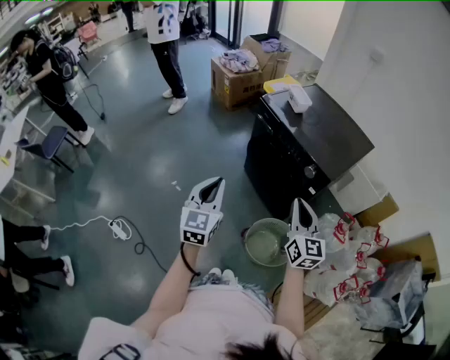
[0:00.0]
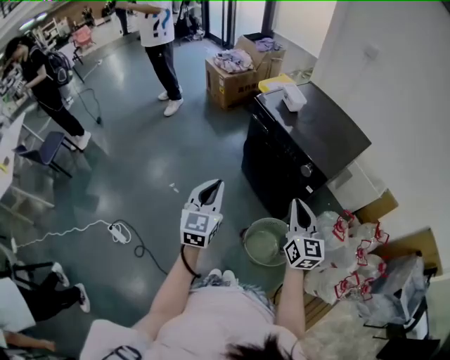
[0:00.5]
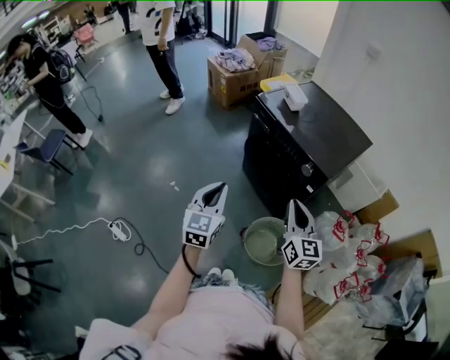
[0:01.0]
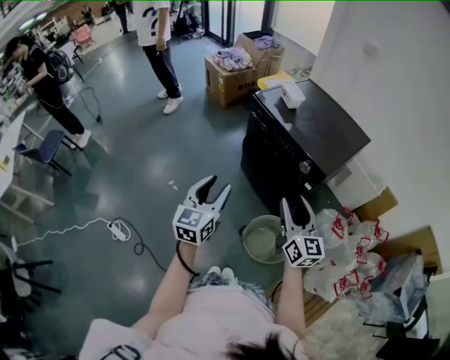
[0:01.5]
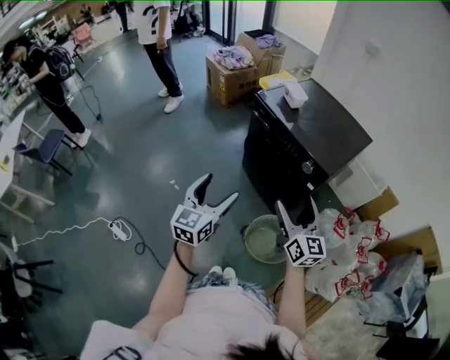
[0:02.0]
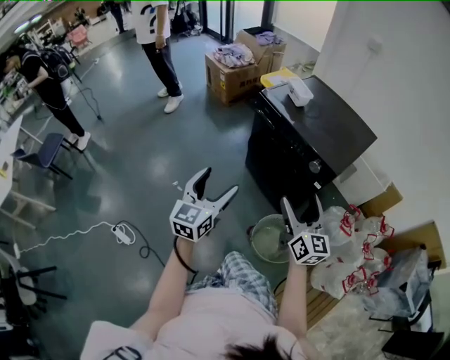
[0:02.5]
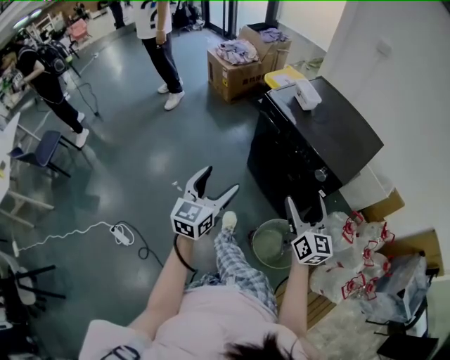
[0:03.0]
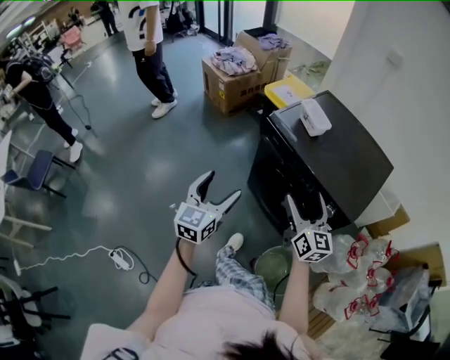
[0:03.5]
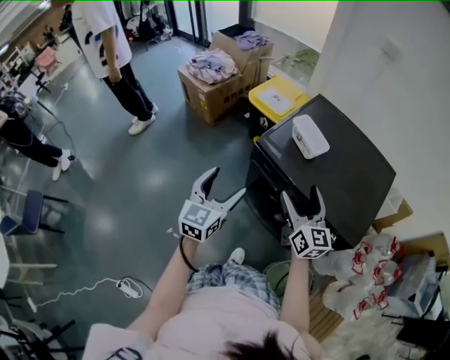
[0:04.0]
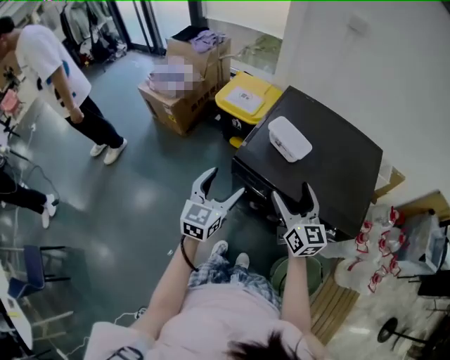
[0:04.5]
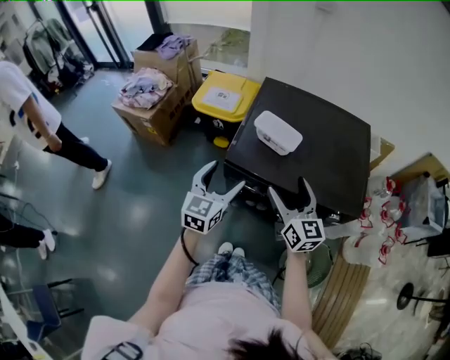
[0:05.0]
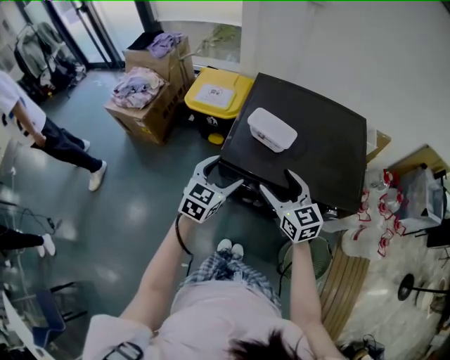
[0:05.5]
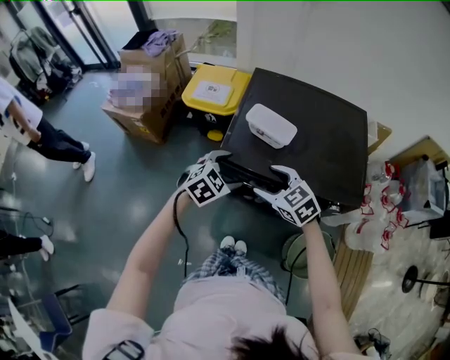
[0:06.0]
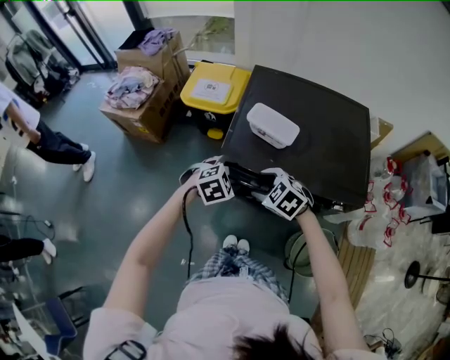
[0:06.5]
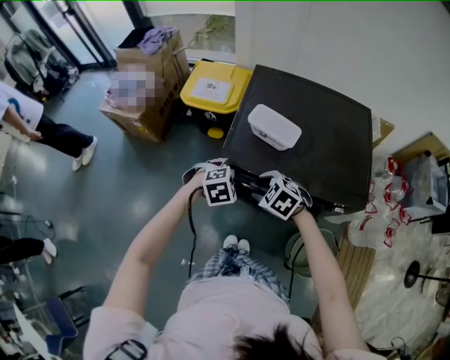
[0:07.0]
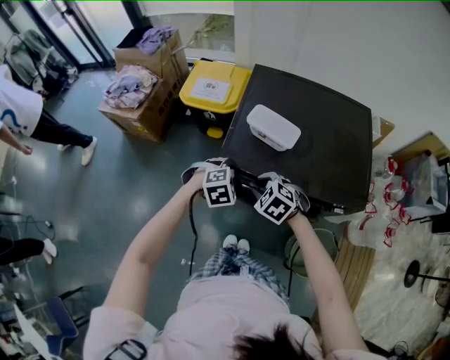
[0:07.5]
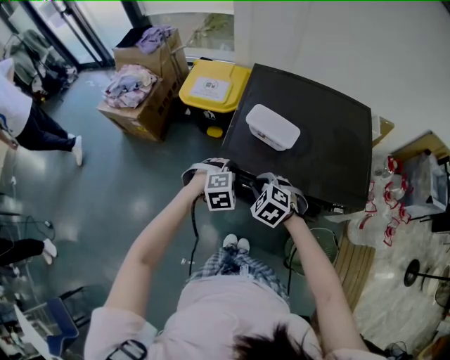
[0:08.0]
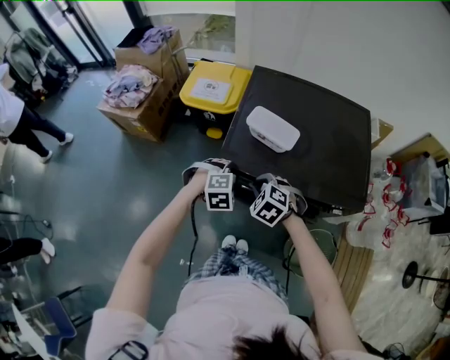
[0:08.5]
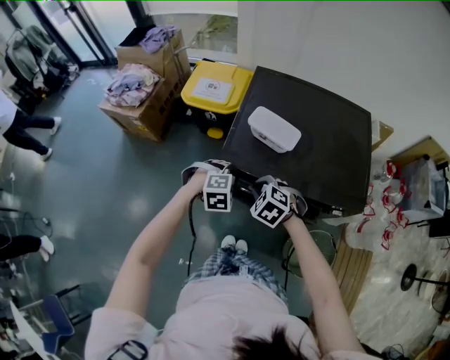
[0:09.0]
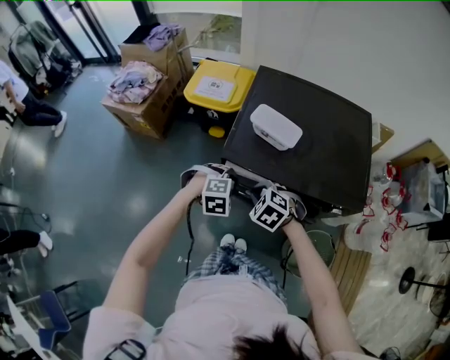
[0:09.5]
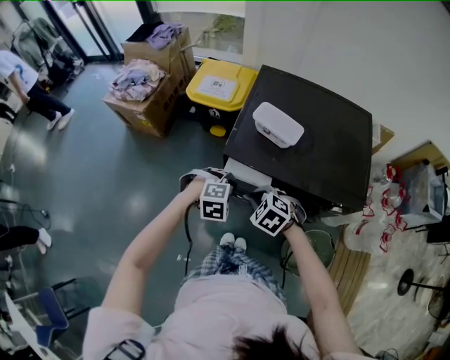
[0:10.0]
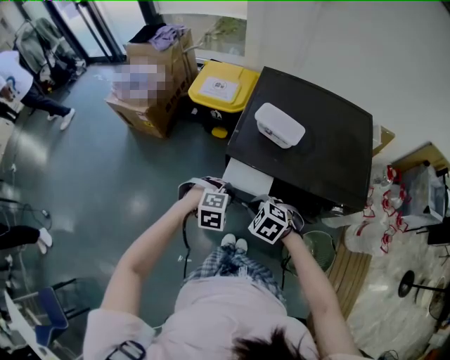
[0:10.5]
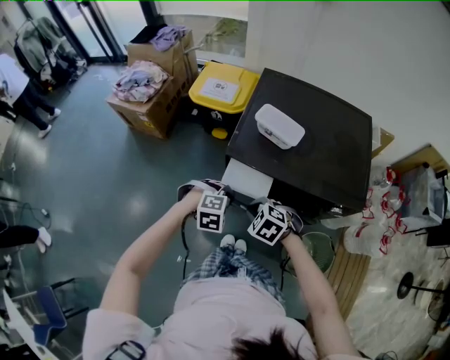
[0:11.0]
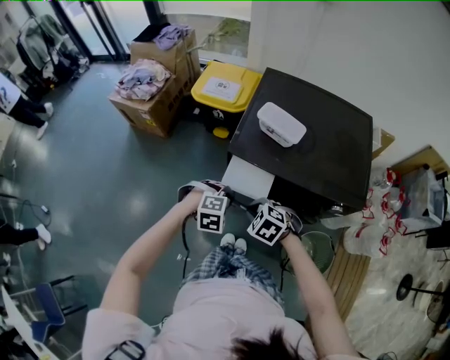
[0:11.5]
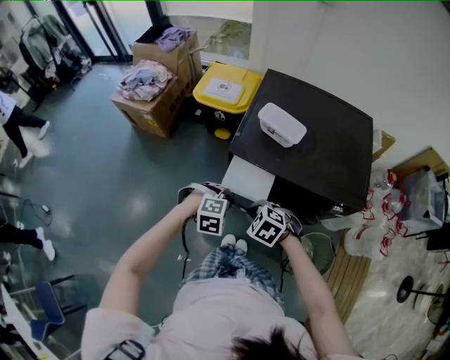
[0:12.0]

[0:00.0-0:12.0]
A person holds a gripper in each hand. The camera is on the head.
0:00.0 to 0:02.0: The left gripper opens. The right gripper opens.
0:02.0 to 0:04.0: Both grippers move forward, roughly 40 cm.
0:04.0 to 0:06.0: The right gripper shifts roughly 10 cm to the left, forward and downward, and tilts its fingers roughly 40 degrees downward. The left gripper goes approximately 20 cm forward and downward, and tilts its fingers some 40 degrees downward.
0:06.0 to 0:08.0: Both grippers travel together downward, roughly 10 cm. The left gripper swivels approximately 30 degrees, and closes up. The right gripper changes its angle by some 30 degrees, and closes up.
0:08.0 to 0:10.0: Both grippers move backward, roughly 5 cm.
0:10.0 to 0:12.0: Both grippers travel together backward, approximately 5 cm.

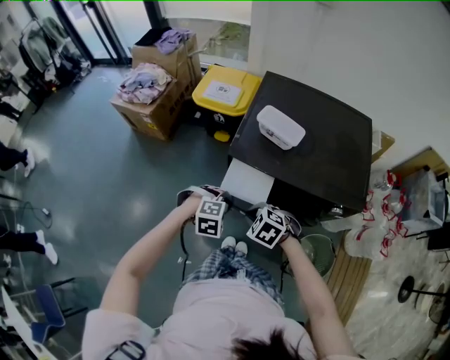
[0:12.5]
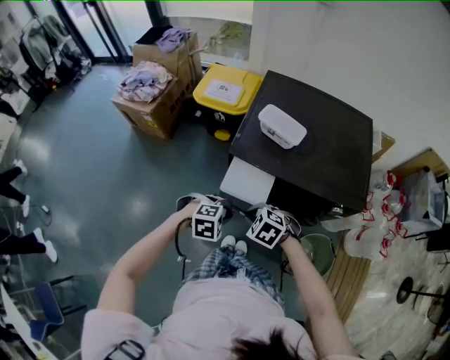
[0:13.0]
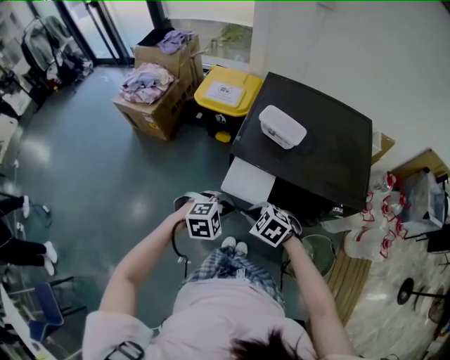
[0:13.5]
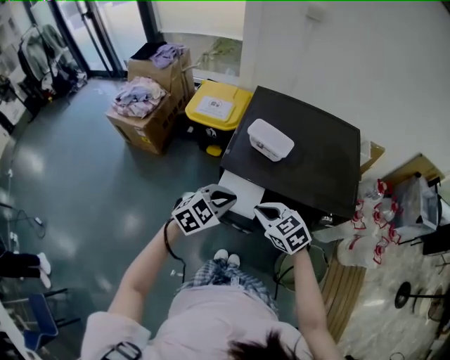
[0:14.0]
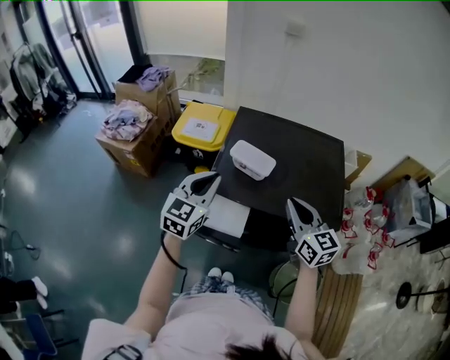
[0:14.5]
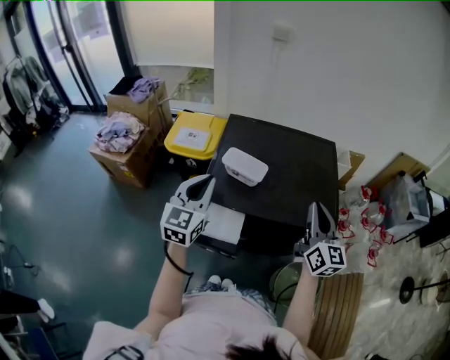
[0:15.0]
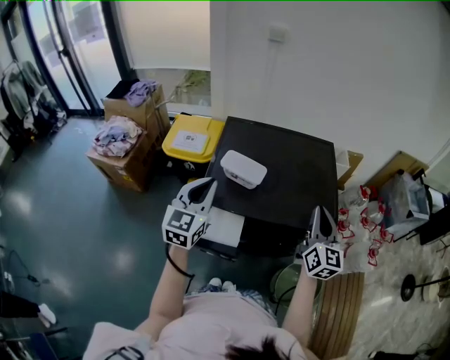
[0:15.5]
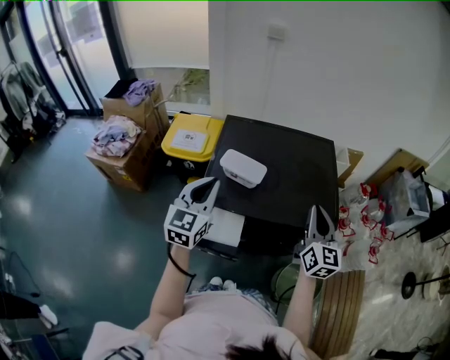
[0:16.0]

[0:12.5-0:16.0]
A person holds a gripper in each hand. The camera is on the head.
0:12.5 to 0:14.5: Both grippers travel together upward, some 25 cm. The right gripper tilts its fingers about 60 degrees upward. The left gripper points its fingers some 60 degrees further upward.
0:14.5 to 0:16.0: The right gripper heads to the right, covering some 10 cm, and rotates some 30 degrees.

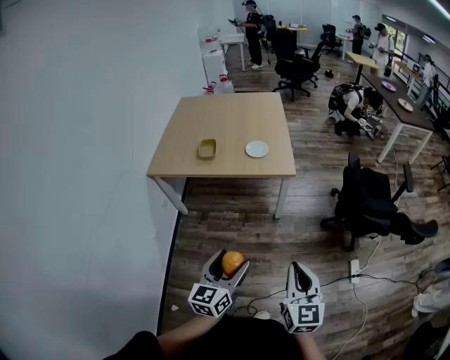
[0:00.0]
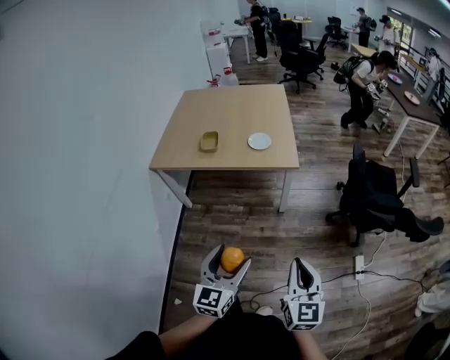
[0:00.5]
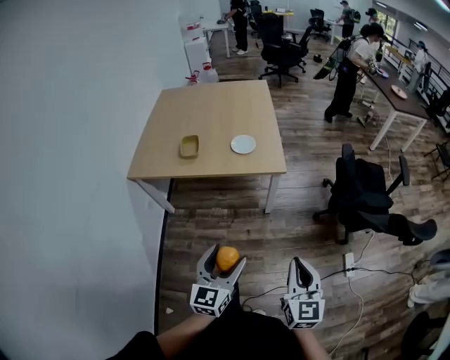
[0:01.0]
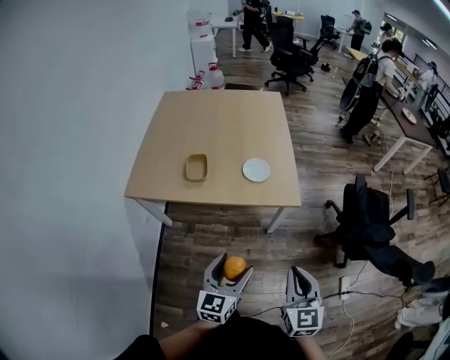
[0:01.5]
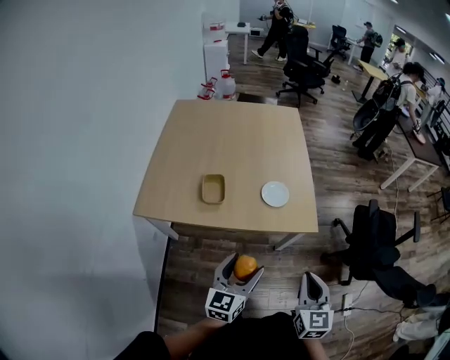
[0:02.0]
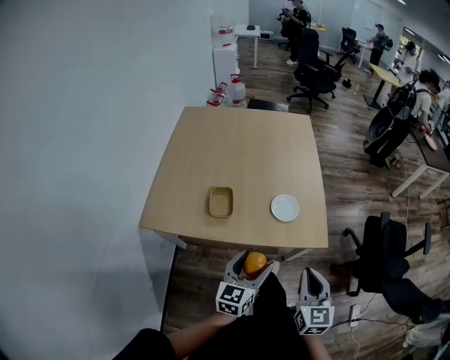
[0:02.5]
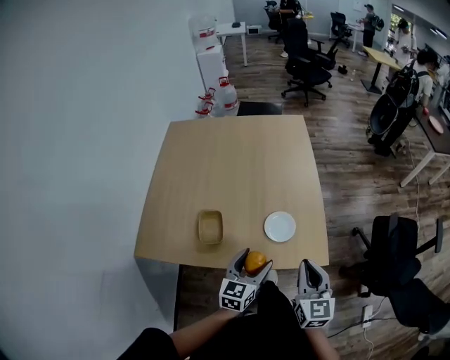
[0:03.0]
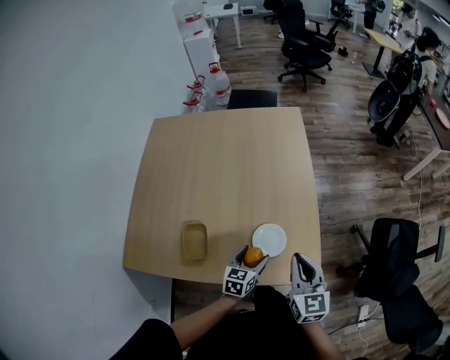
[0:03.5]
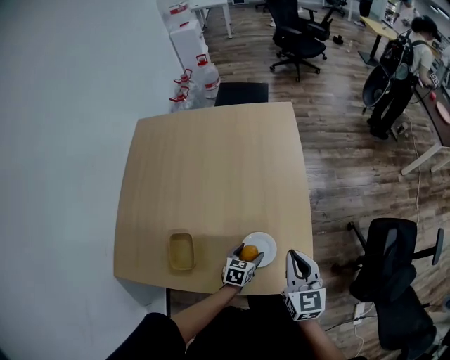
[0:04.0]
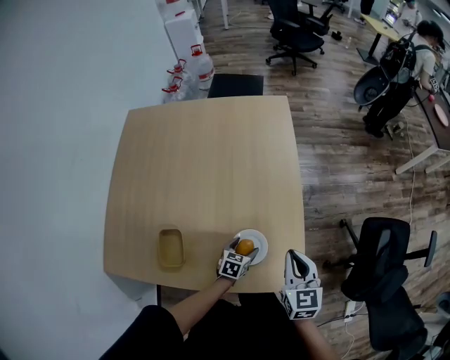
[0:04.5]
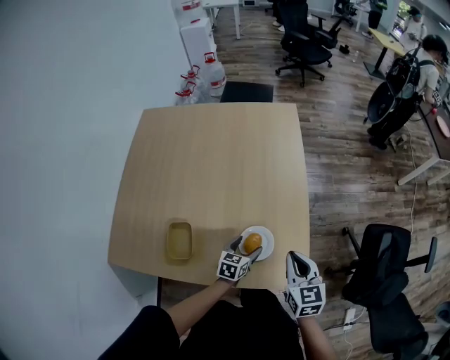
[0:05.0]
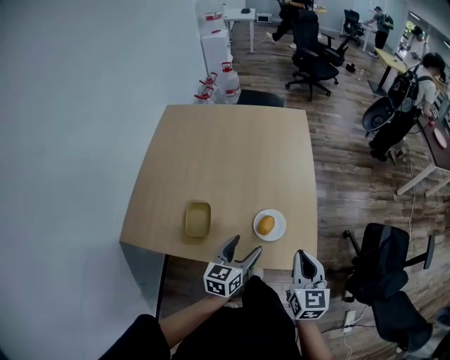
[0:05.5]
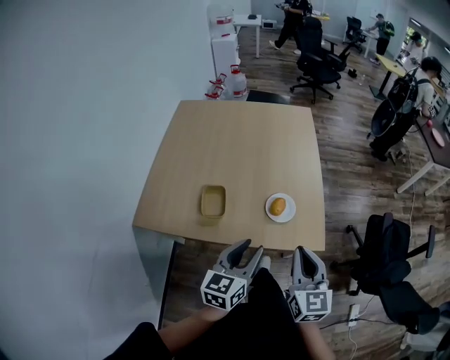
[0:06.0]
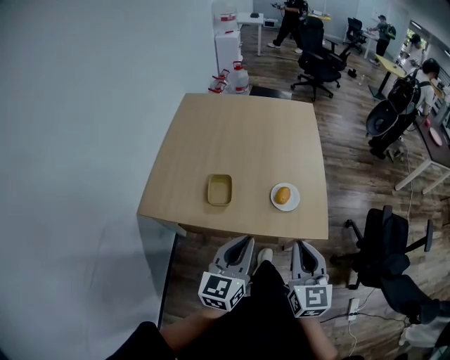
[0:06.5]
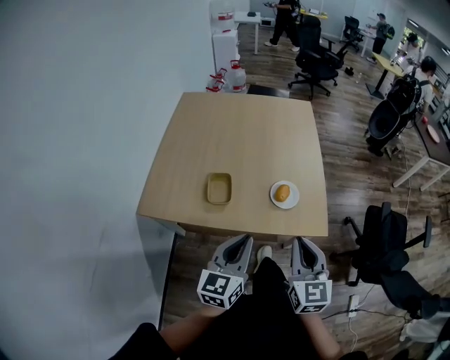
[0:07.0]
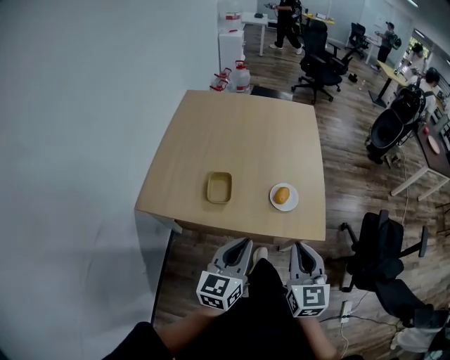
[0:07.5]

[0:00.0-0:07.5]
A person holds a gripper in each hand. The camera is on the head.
0:00.0 to 0:02.0: The two grippers go approximately 35 cm forward.
0:02.0 to 0:04.0: The right gripper is displaced forward by roughly 40 cm. The left gripper is displaced forward and downward by approximately 50 cm, and tilts its fingers some 40 degrees downward.
0:04.0 to 0:05.5: The right gripper travels backward by some 15 cm. The left gripper heads upward and backward, covering roughly 25 cm, and changes its angle by approximately 30 degrees.
0:05.5 to 0:07.5: The right gripper heads backward, to the left and upward, covering roughly 20 cm. Meanwhile the left gripper heads backward and upward, covering approximately 20 cm, and closes up.

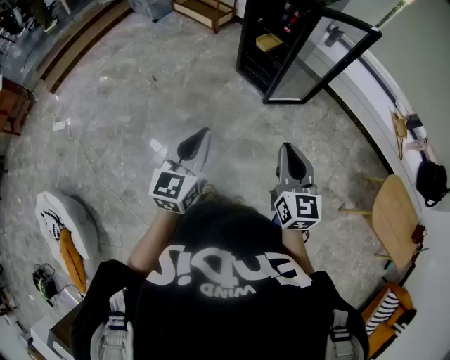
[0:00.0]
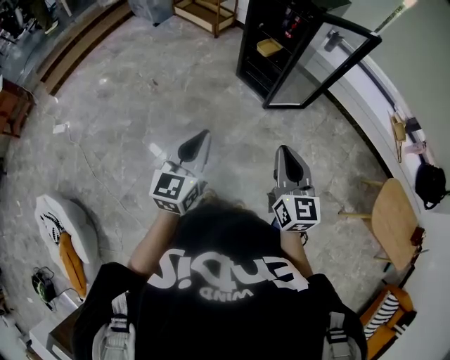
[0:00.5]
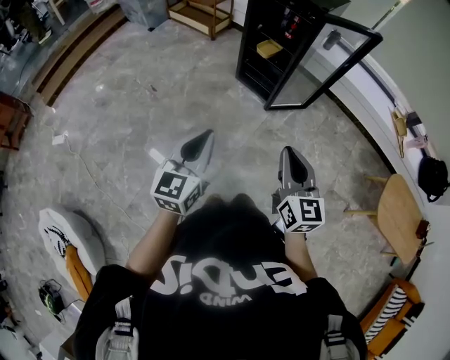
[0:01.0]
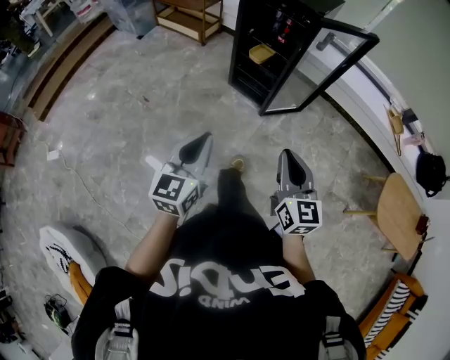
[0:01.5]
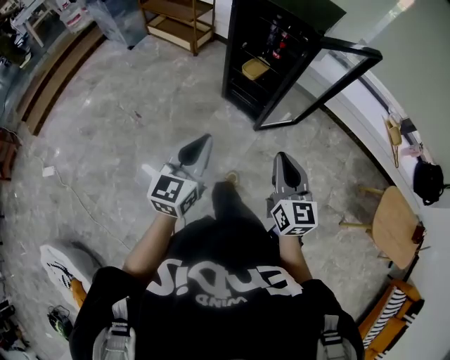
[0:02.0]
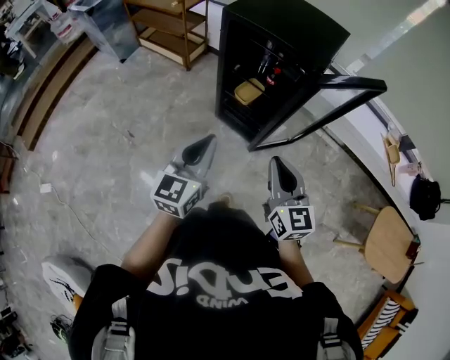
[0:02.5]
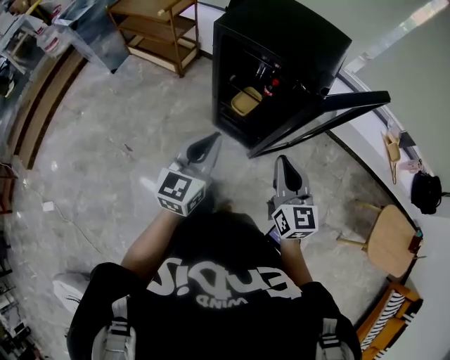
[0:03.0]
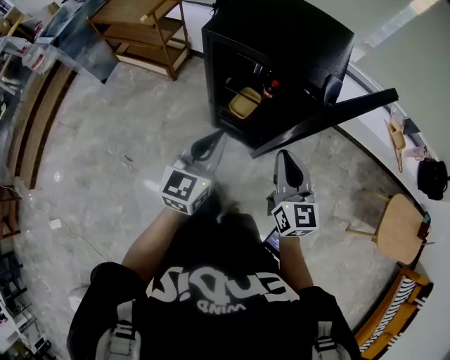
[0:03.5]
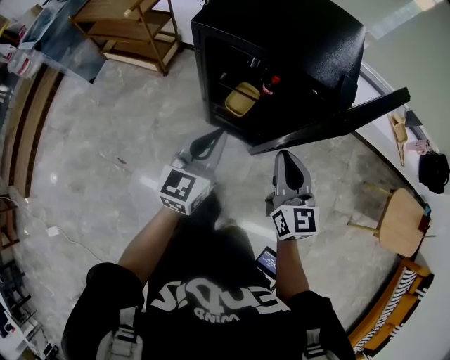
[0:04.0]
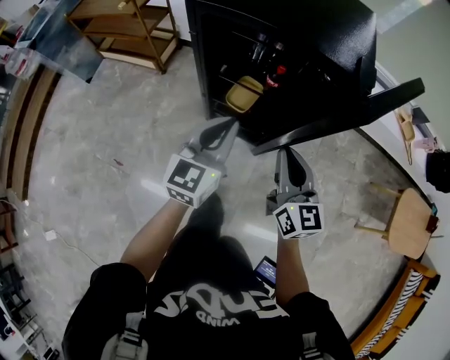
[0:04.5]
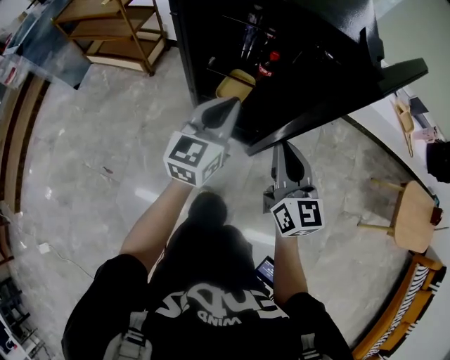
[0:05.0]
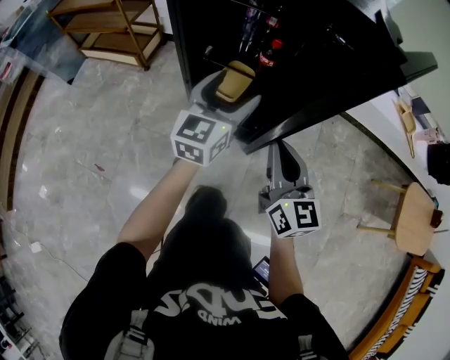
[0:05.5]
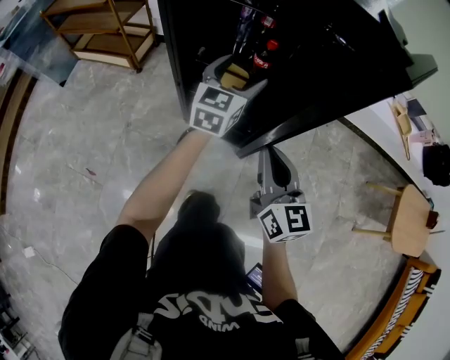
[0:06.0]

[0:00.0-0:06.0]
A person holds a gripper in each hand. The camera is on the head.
0:00.0 to 0:02.0: Both grippers move forward, about 25 cm.
0:02.0 to 0:04.0: Both grippers travel together forward, about 40 cm.
0:04.0 to 0:06.0: The right gripper heads downward, covering approximately 20 cm. The left gripper goes roughly 30 cm downward and forward, and opens.
